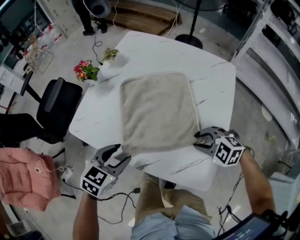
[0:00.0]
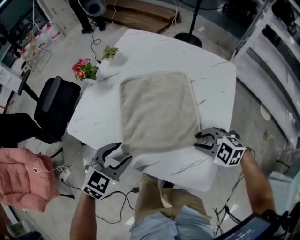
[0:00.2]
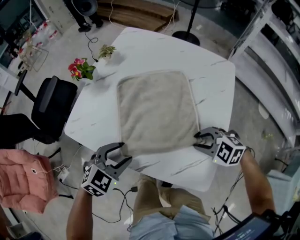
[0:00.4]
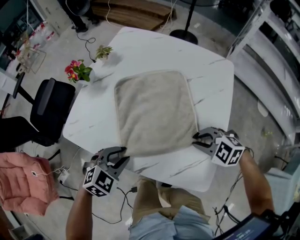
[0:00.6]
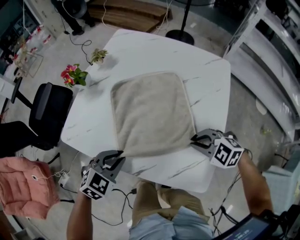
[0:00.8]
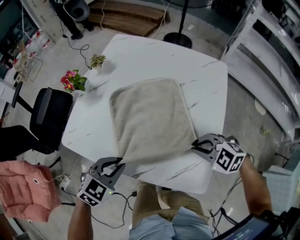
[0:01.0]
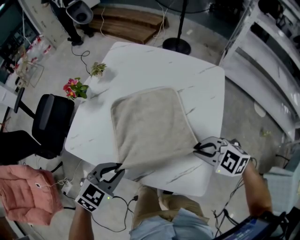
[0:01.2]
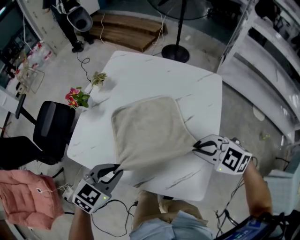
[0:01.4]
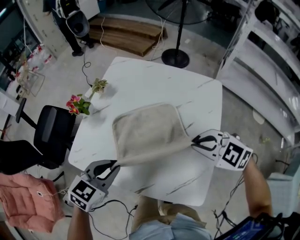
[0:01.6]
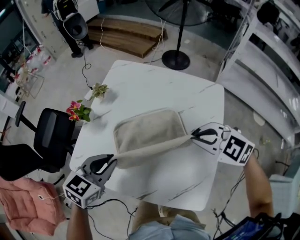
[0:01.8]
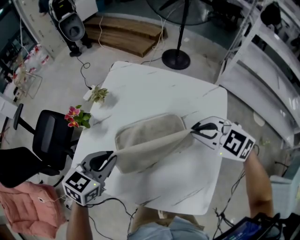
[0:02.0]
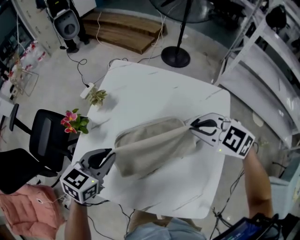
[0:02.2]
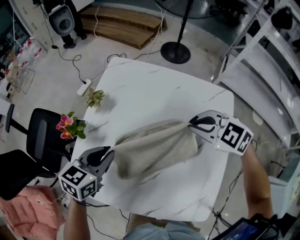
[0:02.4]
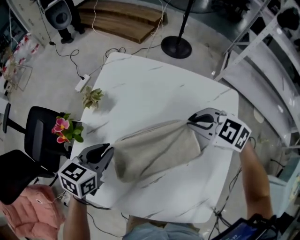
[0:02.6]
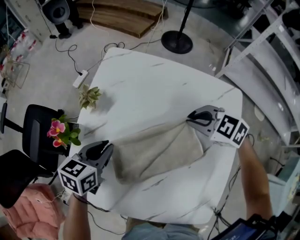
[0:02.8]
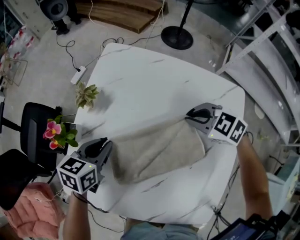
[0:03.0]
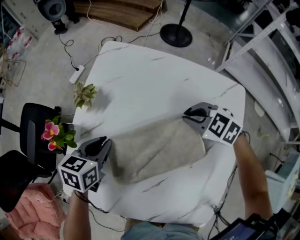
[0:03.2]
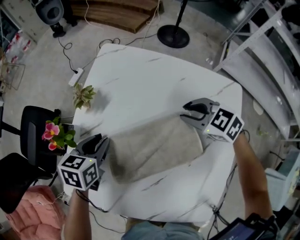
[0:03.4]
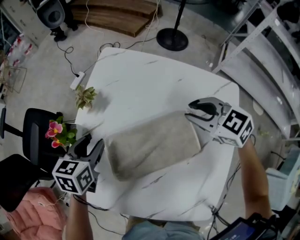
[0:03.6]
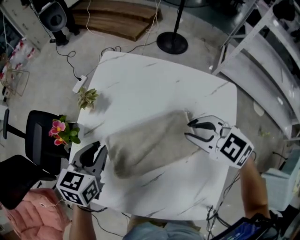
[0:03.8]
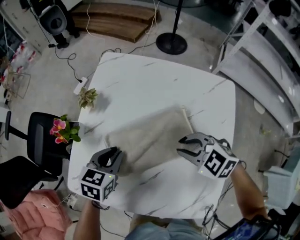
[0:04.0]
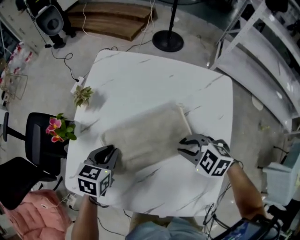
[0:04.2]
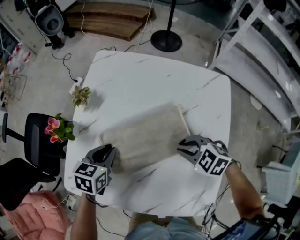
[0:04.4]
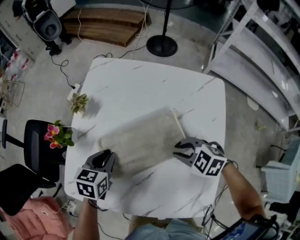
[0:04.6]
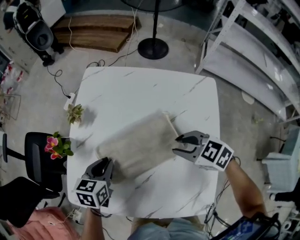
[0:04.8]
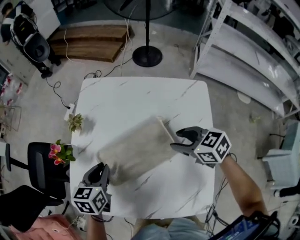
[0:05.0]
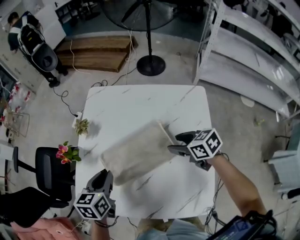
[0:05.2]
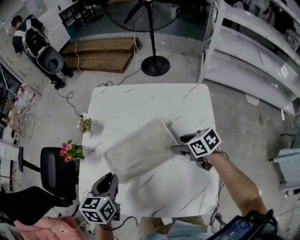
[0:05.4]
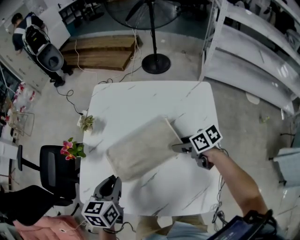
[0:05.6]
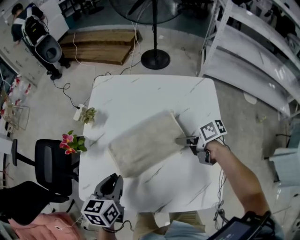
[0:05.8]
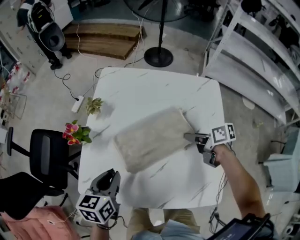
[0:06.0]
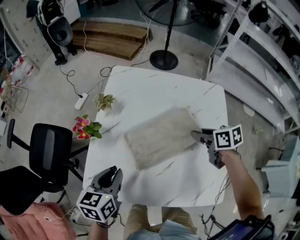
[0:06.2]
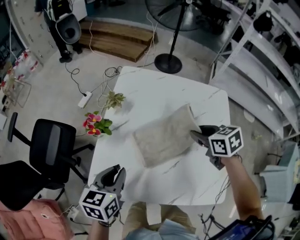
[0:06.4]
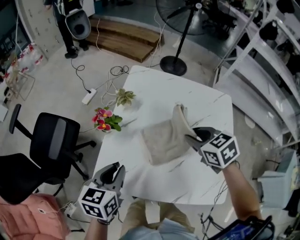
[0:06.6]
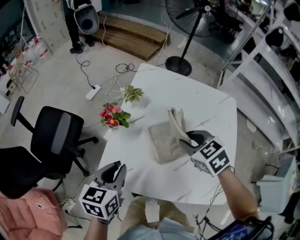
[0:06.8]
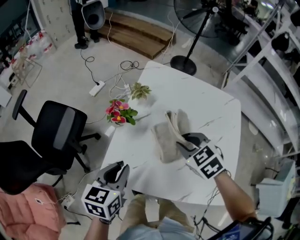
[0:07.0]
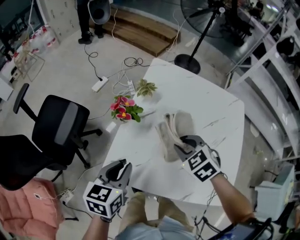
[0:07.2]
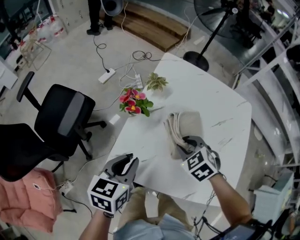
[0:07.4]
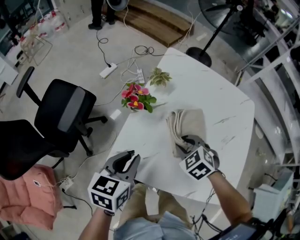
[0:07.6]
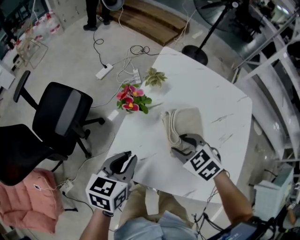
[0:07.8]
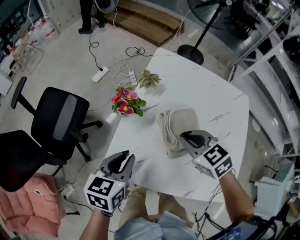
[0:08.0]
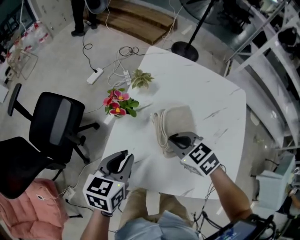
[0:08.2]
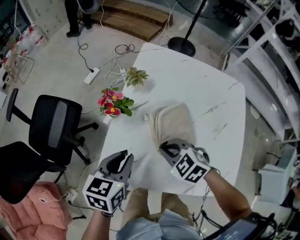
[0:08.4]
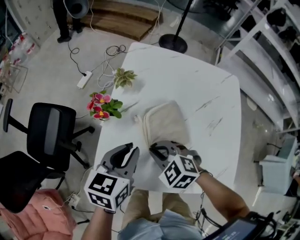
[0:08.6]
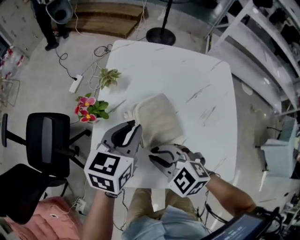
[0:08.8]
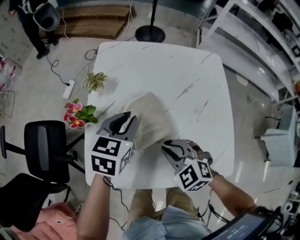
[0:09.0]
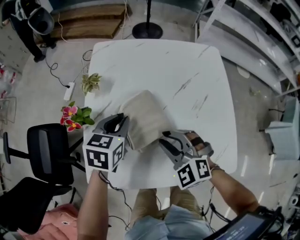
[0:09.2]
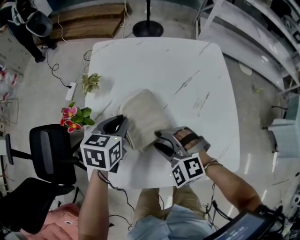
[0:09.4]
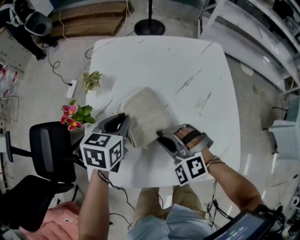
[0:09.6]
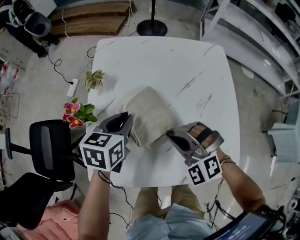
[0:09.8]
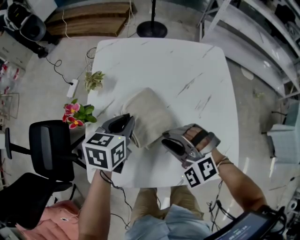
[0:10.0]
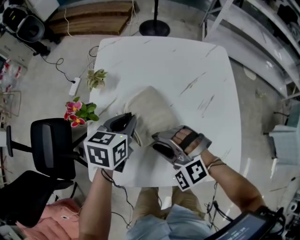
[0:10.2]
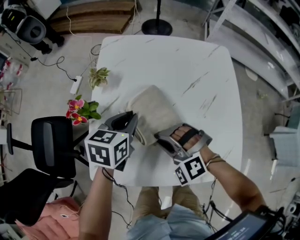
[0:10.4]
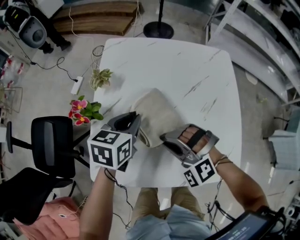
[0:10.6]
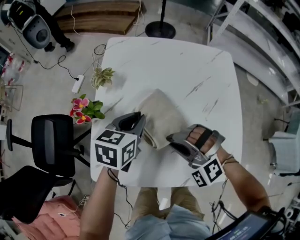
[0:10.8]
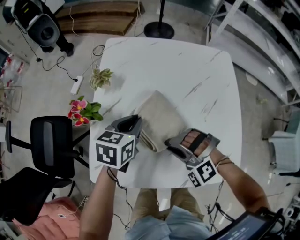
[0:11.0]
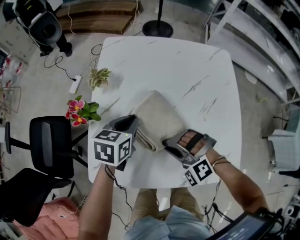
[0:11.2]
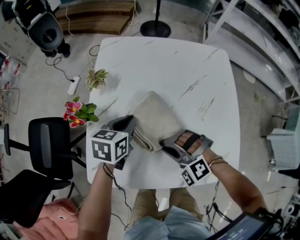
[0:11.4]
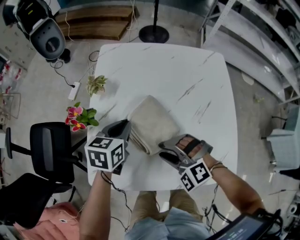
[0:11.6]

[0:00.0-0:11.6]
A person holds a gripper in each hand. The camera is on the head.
0:00.0 to 0:01.4: The right gripper is displaced upward by roughly 10 cm, and closes its fingers, while the left gripper goes roughly 5 cm upward, and closes its fingers.
0:01.4 to 0:02.8: Both grippers travel together forward, some 25 cm. The left gripper changes its angle by roughly 30 degrees.
0:02.8 to 0:04.4: The left gripper changes place by approximately 5 cm, and opens, then closes again; the right gripper is displaced backward by about 15 cm.
0:04.4 to 0:05.8: The right gripper reaches about 5 cm upward, then returns, rolls clockwise, seen from behind, by some 80 degrees, and opens; the left gripper heads upward and backward, covering about 10 cm.
0:05.8 to 0:07.2: The left gripper shifts about 15 cm to the left. The right gripper goes some 25 cm to the left, and rolls counterclockwise, seen from behind, by roughly 70 degrees.
0:07.2 to 0:08.8: The right gripper goes up and down, approximately 10 cm each way, reversing 2 times. Meanwhile the left gripper is displaced to the right and forward by roughly 15 cm.
0:08.8 to 0:10.2: The left gripper shifts about 5 cm downward; the right gripper turns by roughly 40 degrees, and opens its fingers.
0:10.2 to 0:11.6: The right gripper closes, then reopens.

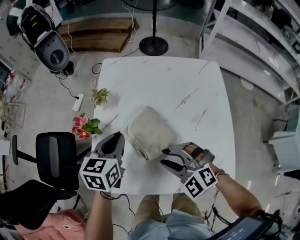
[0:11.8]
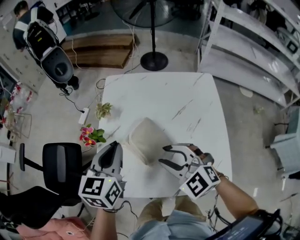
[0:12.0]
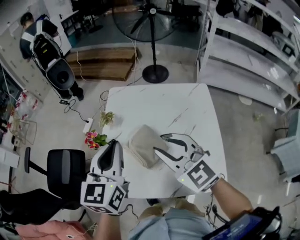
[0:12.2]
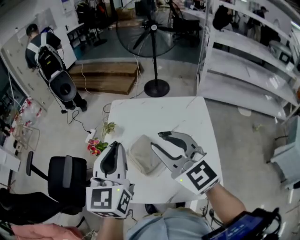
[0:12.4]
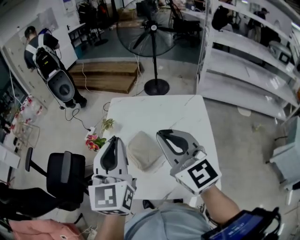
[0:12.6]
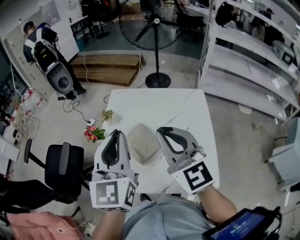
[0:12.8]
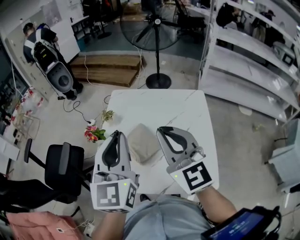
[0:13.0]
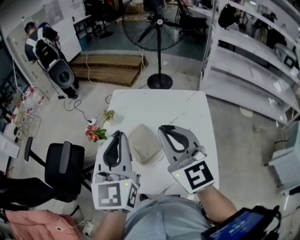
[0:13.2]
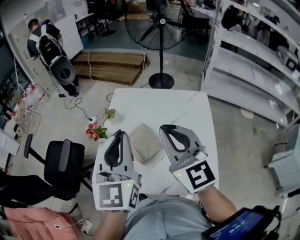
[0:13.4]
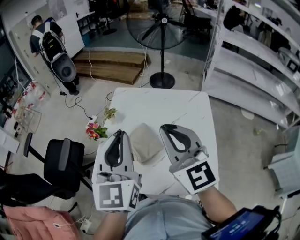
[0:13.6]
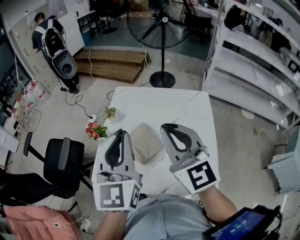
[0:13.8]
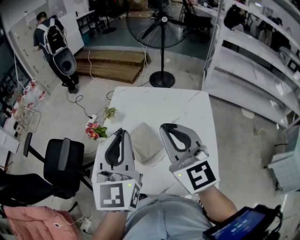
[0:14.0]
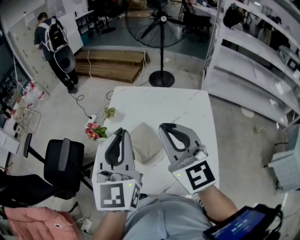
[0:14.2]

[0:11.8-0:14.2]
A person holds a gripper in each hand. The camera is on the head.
0:11.8 to 0:13.0: The two grippers go roughly 25 cm upward. The right gripper tilts its fingers about 40 degrees upward, and closes its fingers. Meanwhile the left gripper tilts its fingers about 30 degrees upward.
0:13.0 to 0:14.2: Both grippers stay put.

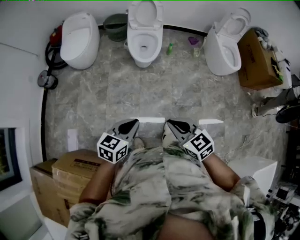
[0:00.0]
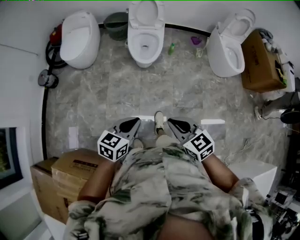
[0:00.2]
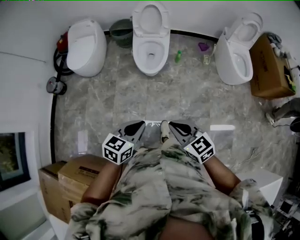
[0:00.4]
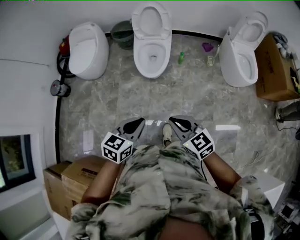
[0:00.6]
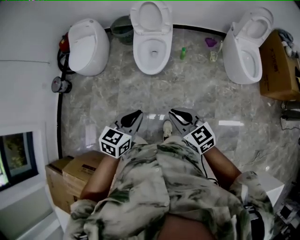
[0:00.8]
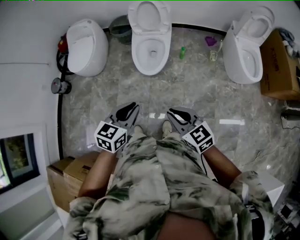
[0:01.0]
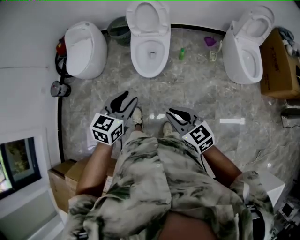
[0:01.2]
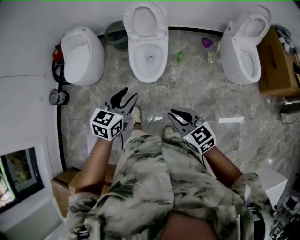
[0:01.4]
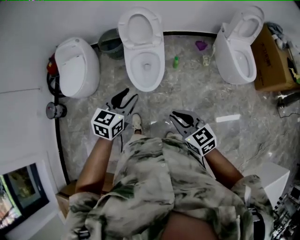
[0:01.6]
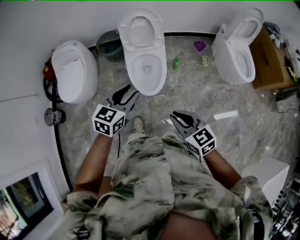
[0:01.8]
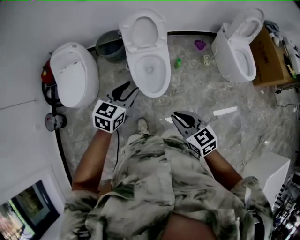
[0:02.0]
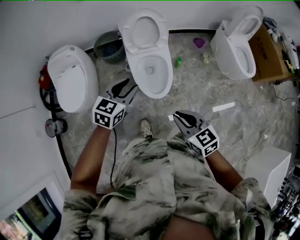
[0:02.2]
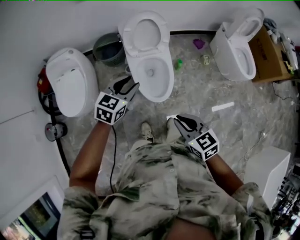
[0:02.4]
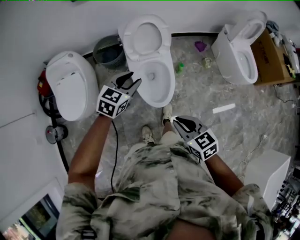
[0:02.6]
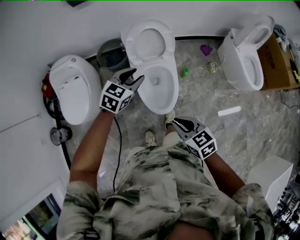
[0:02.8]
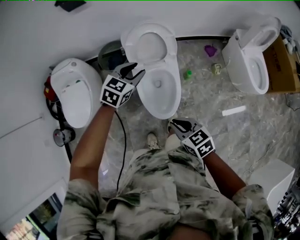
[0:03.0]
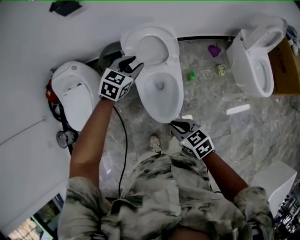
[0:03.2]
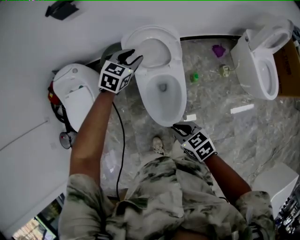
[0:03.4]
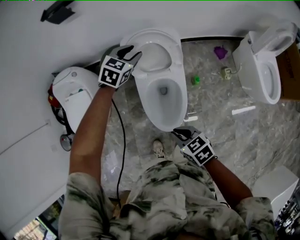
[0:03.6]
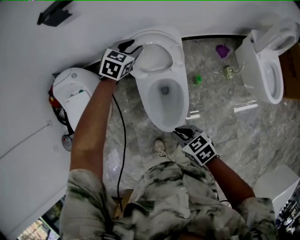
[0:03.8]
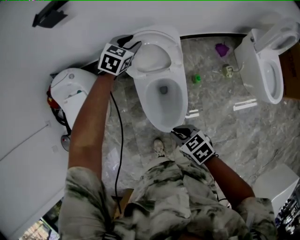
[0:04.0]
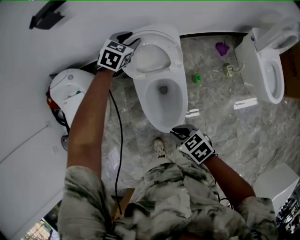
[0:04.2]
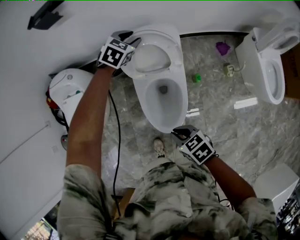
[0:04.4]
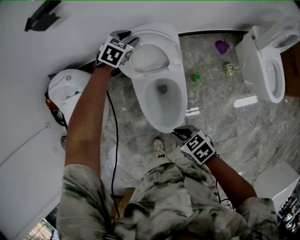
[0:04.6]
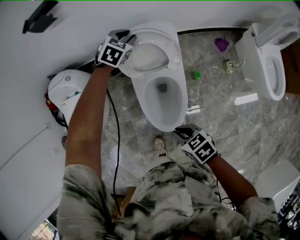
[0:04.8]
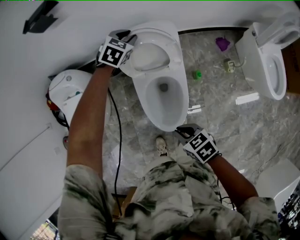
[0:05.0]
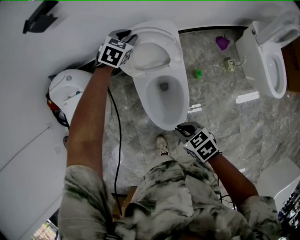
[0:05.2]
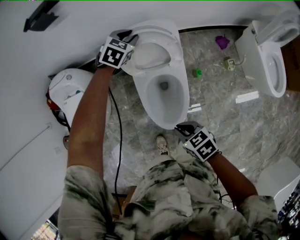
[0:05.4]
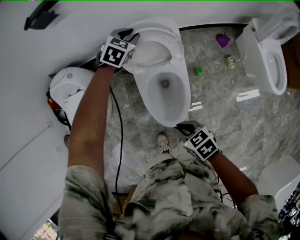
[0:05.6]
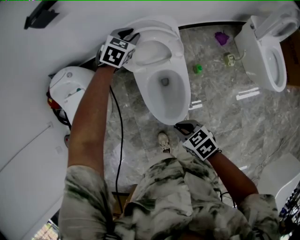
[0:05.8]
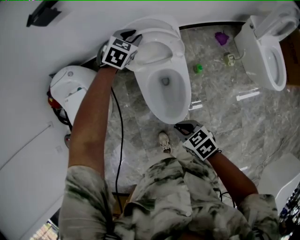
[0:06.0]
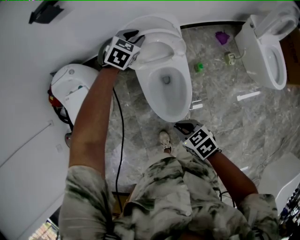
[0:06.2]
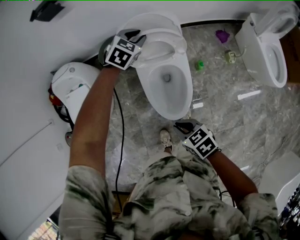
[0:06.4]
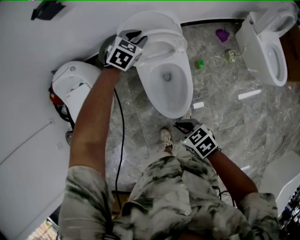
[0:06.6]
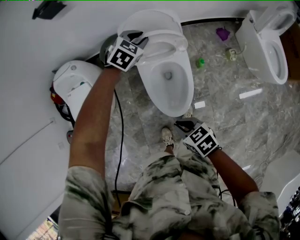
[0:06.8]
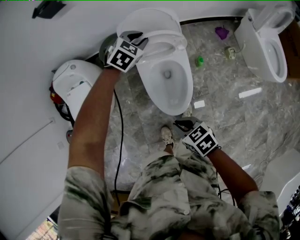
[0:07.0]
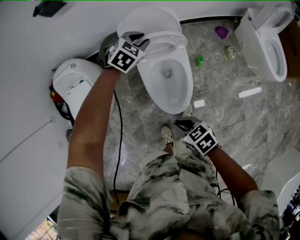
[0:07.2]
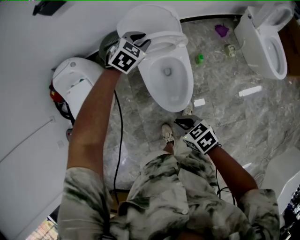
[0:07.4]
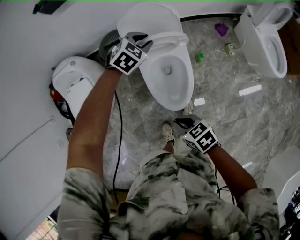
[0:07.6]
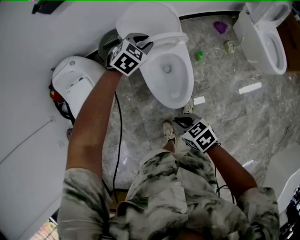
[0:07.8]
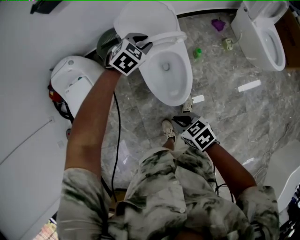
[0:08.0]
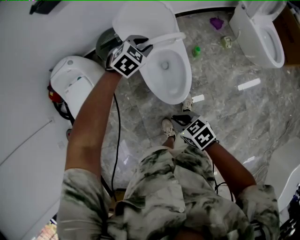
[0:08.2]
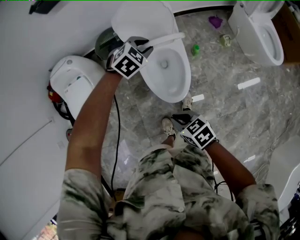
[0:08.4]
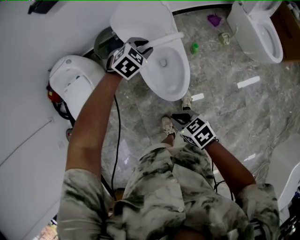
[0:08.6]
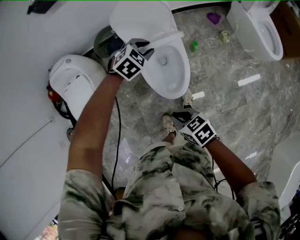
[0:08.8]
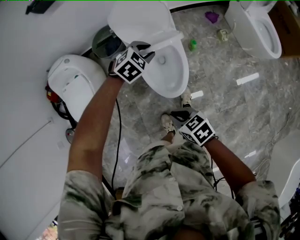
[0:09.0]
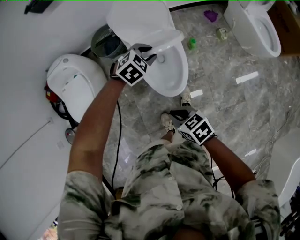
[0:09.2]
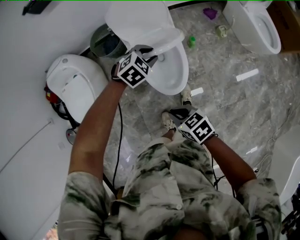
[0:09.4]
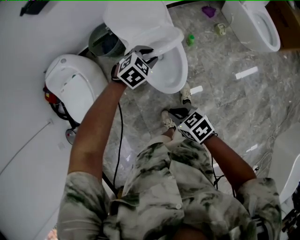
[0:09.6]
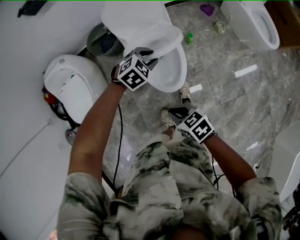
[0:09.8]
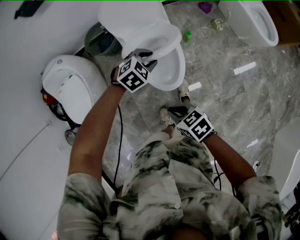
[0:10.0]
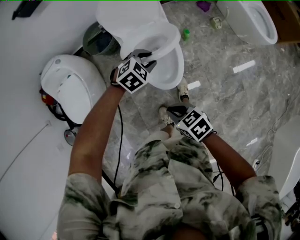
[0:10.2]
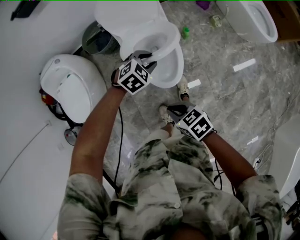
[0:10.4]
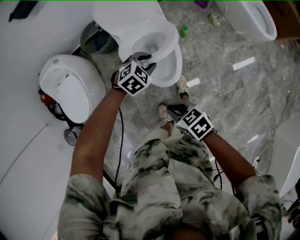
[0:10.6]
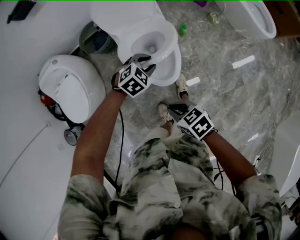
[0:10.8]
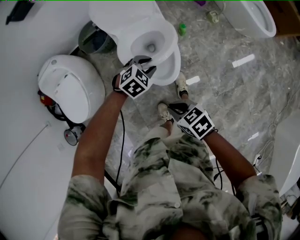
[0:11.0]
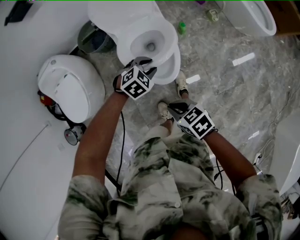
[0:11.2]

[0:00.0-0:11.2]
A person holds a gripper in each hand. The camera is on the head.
0:00.0 to 0:01.6: The pair of grippers is taken forward, some 50 cm. The left gripper opens up.
0:01.6 to 0:03.2: The right gripper shifts roughly 35 cm forward. The left gripper moves forward, approximately 50 cm, and changes its angle by some 20 degrees.
0:03.2 to 0:04.8: The right gripper moves downward, forward and to the right, some 15 cm. The left gripper shifts roughly 30 cm forward, to the right and downward.
0:04.8 to 0:06.4: The left gripper moves backward, about 10 cm. The right gripper goes about 10 cm to the left and backward.
0:06.4 to 0:08.0: The right gripper goes about 10 cm backward and to the left. The left gripper heads backward, covering approximately 15 cm.
0:08.0 to 0:09.6: The left gripper shifts about 15 cm backward and downward. The right gripper ends up approximately 5 cm from where it was.
0:09.6 to 0:11.2: The left gripper shifts by about 10 cm.
